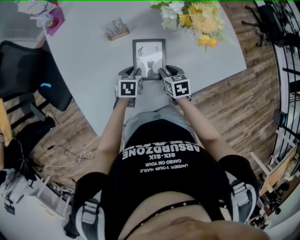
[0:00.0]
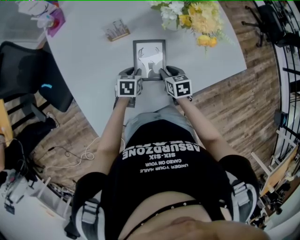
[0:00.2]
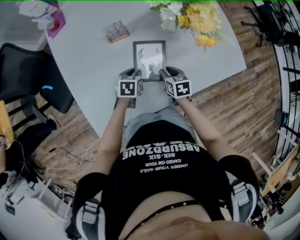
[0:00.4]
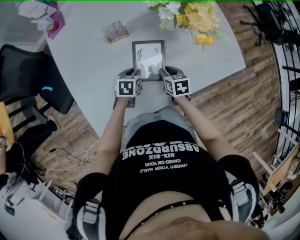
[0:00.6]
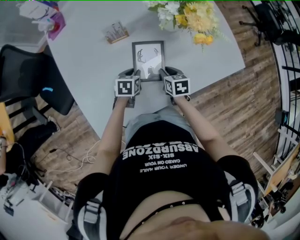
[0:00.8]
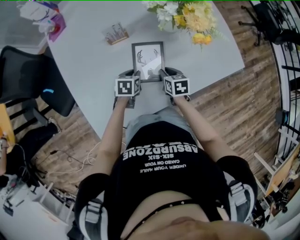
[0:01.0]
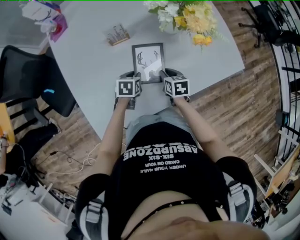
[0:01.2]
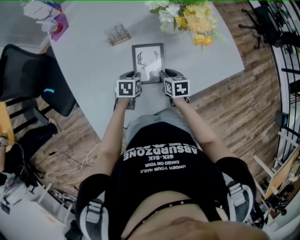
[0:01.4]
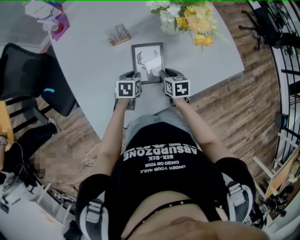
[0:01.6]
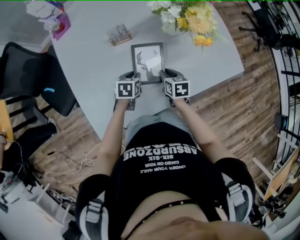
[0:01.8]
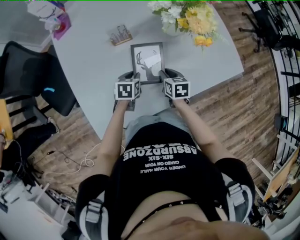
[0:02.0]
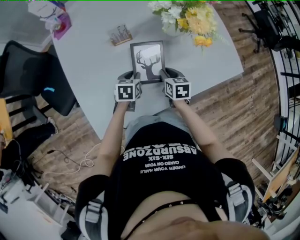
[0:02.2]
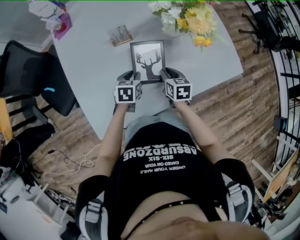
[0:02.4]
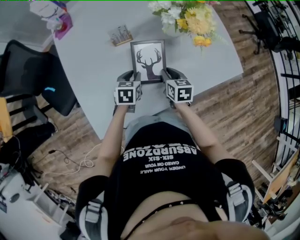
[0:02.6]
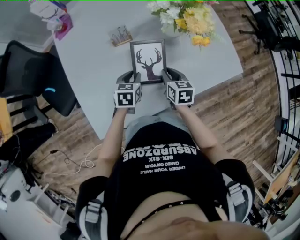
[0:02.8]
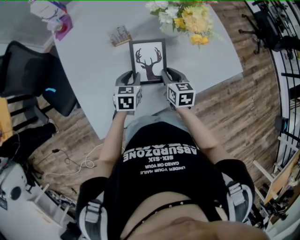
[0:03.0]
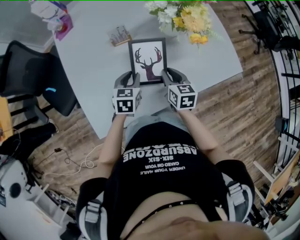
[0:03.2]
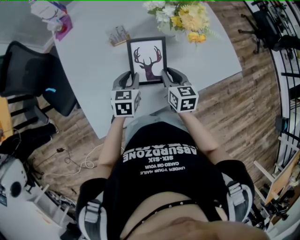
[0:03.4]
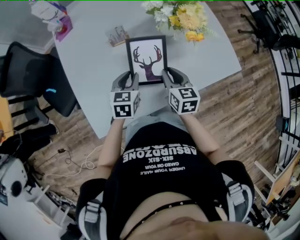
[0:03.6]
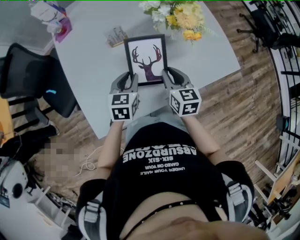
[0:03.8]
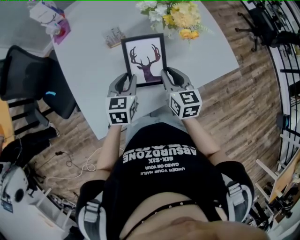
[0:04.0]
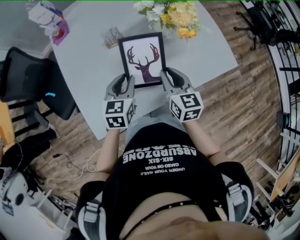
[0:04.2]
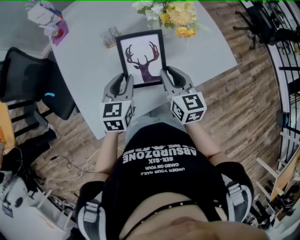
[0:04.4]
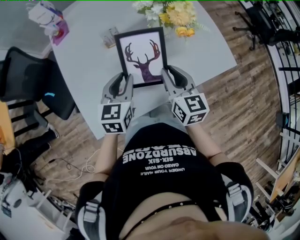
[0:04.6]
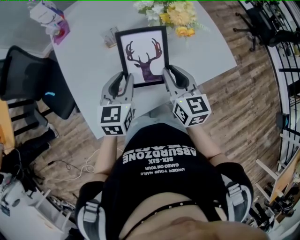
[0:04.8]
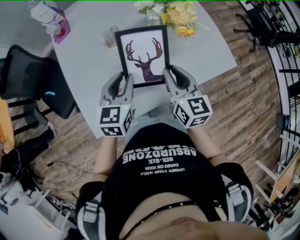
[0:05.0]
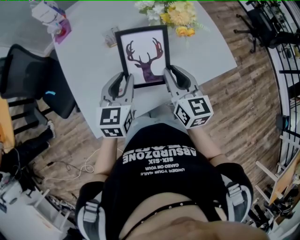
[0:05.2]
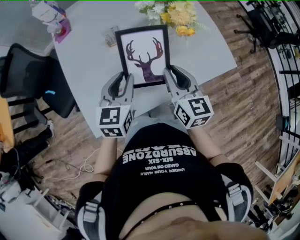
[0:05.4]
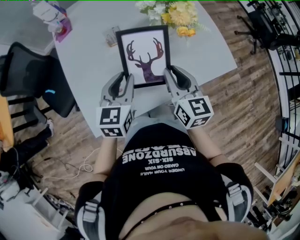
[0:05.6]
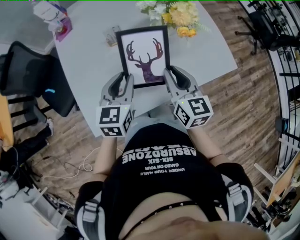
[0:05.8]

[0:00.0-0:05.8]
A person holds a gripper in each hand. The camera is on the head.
0:00.0 to 0:01.4: The grippers move only a little.
0:01.4 to 0:02.8: The grippers both shift upward by roughly 5 cm.
0:02.8 to 0:04.4: The grippers both shift upward by some 15 cm. The right gripper turns by some 20 degrees.
0:04.4 to 0:05.8: The grippers move only a little.

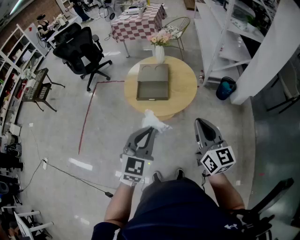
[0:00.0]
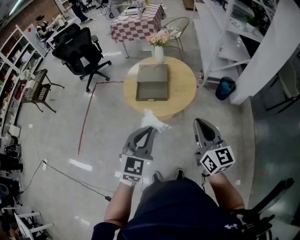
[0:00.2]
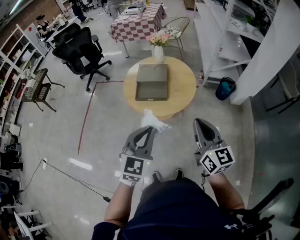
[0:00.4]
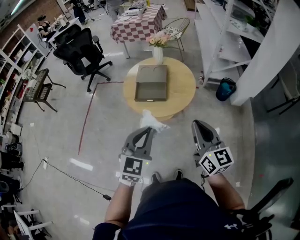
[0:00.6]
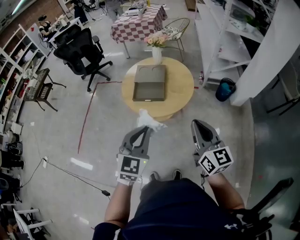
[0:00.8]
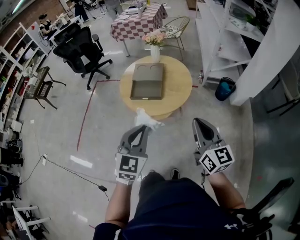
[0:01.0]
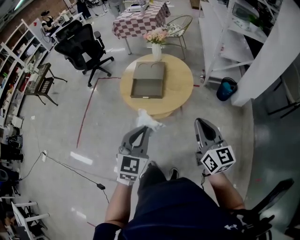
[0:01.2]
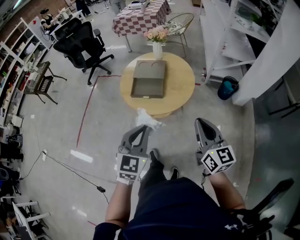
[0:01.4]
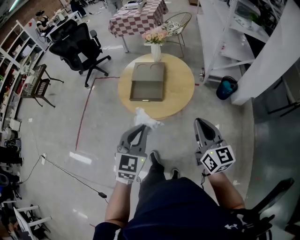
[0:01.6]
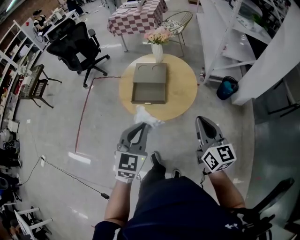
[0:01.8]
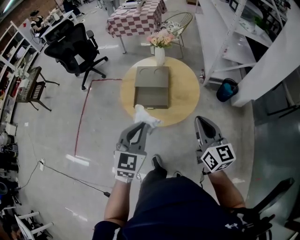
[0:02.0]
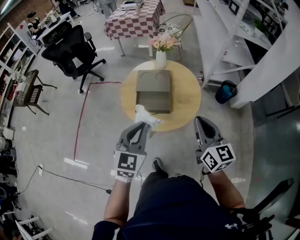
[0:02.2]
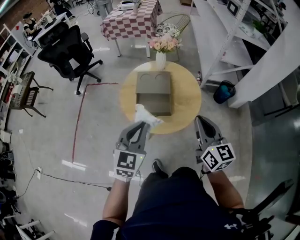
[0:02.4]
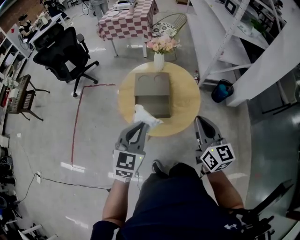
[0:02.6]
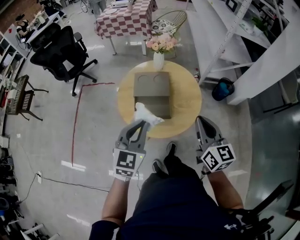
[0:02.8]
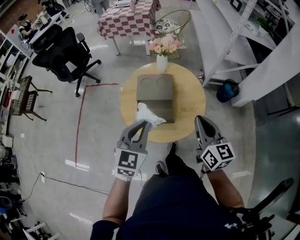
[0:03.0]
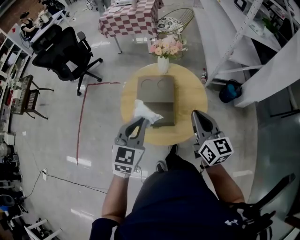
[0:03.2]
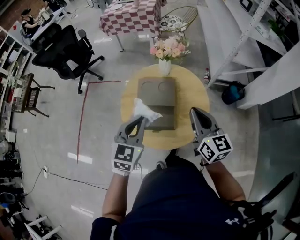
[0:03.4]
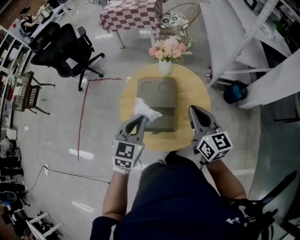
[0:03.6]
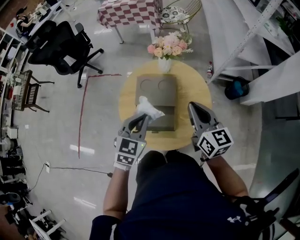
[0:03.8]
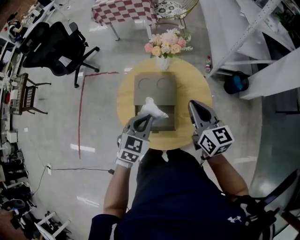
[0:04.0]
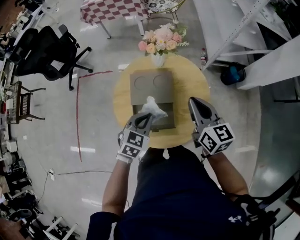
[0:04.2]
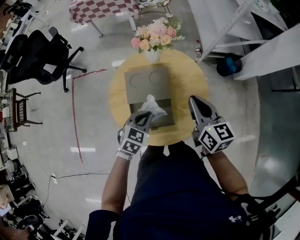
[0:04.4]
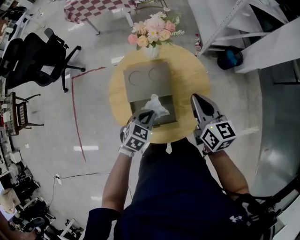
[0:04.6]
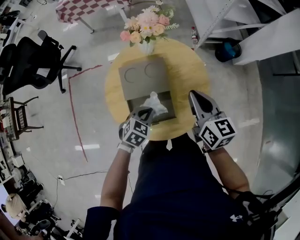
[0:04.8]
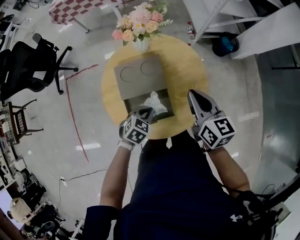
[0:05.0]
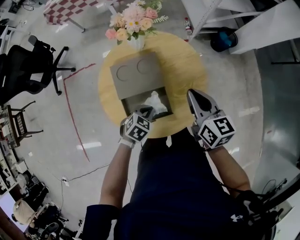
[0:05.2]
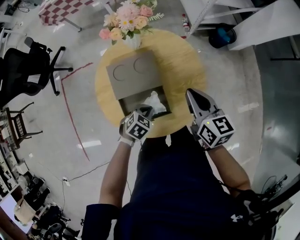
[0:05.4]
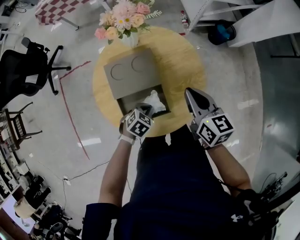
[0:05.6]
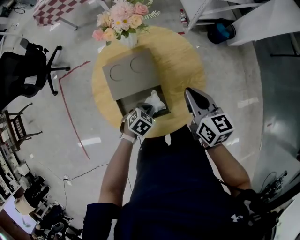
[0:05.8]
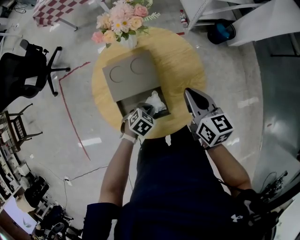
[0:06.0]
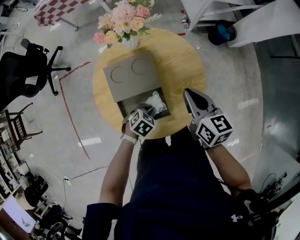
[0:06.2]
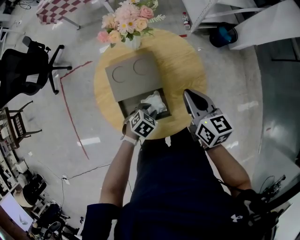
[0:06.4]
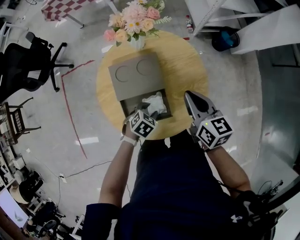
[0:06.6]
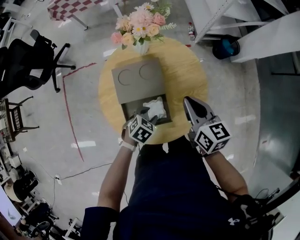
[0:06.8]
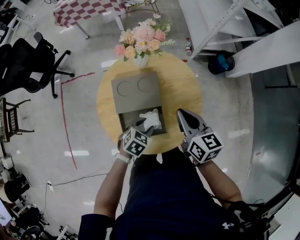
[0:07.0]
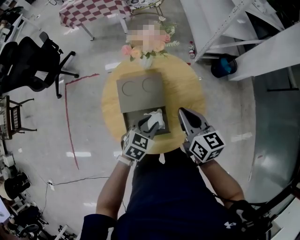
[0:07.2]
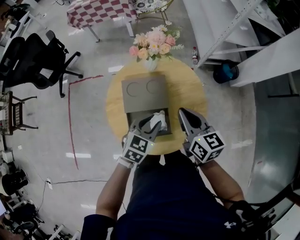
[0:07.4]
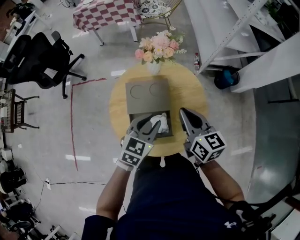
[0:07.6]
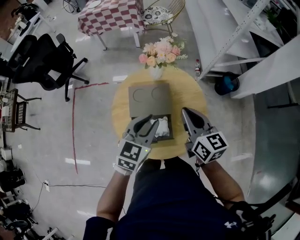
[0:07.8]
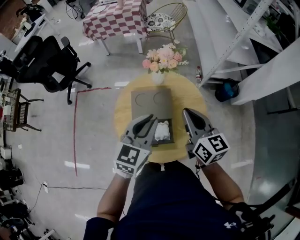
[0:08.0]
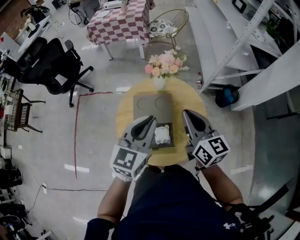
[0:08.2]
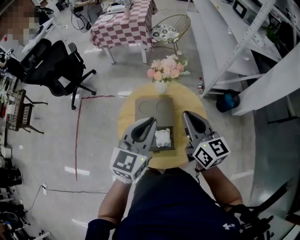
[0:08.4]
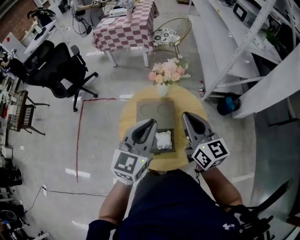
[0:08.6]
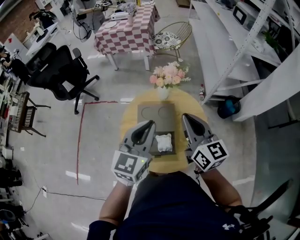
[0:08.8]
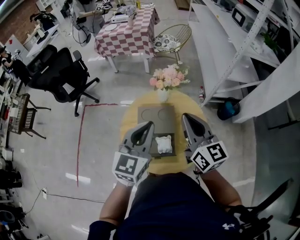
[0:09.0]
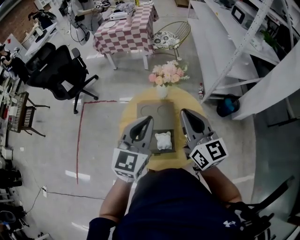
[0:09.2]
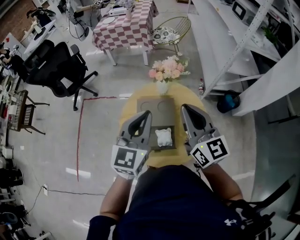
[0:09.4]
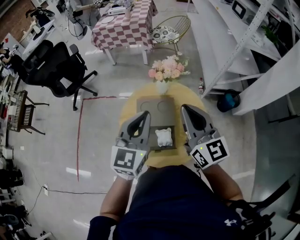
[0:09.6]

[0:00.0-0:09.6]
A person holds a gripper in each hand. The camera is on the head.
0:00.0 to 0:01.6: The left gripper is displaced forward by some 5 cm. Meanwhile the right gripper shifts some 10 cm to the right and forward.
0:01.6 to 0:03.2: The two grippers go about 25 cm forward and to the left.
0:03.2 to 0:04.8: The right gripper is displaced forward and downward by about 15 cm. The left gripper heads downward and forward, covering approximately 25 cm, and tips its fingers downward by roughly 30 degrees.
0:04.8 to 0:06.4: The left gripper travels downward by approximately 10 cm, and opens. The right gripper moves some 5 cm.
0:06.4 to 0:08.0: The right gripper heads upward and to the left, covering some 15 cm; the left gripper is displaced upward by approximately 30 cm, and points its fingers some 50 degrees further upward.
0:08.0 to 0:09.6: The two grippers go some 10 cm upward. The right gripper swivels approximately 20 degrees.

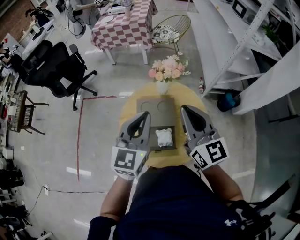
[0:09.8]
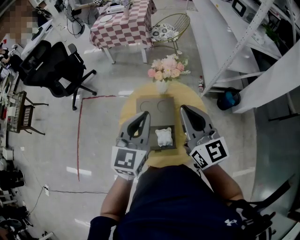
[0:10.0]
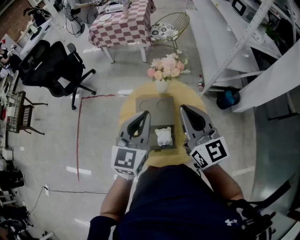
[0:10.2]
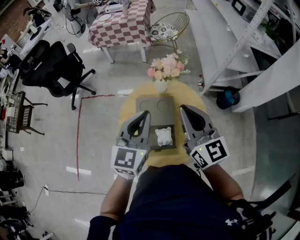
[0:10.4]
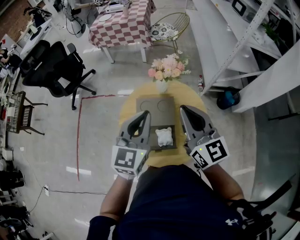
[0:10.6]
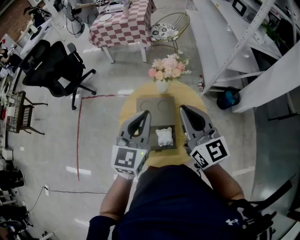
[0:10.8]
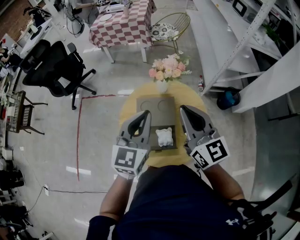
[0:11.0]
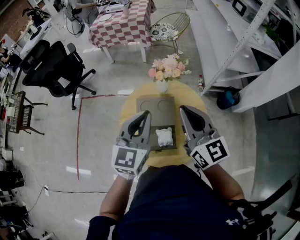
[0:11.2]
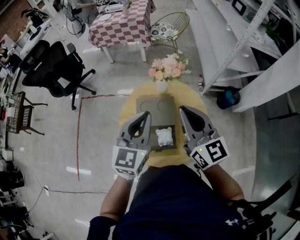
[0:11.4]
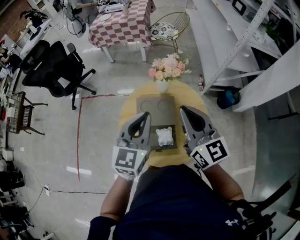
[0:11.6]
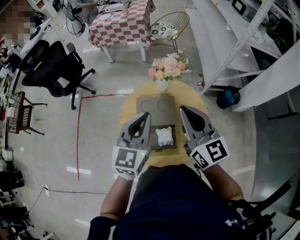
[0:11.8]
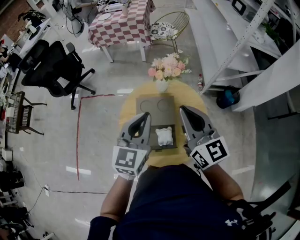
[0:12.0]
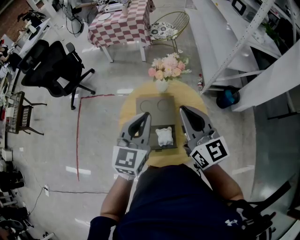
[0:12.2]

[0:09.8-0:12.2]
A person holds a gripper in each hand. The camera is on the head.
0:09.8 to 0:11.0: The two grippers keep their place.
0:11.0 to 0:12.2: The grippers stay close to where they were, moving slightly.

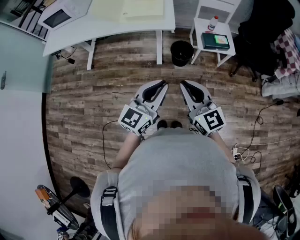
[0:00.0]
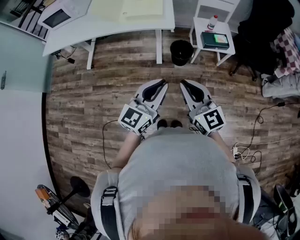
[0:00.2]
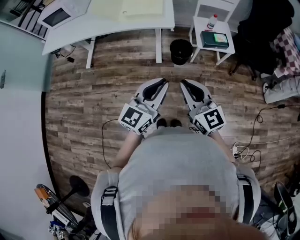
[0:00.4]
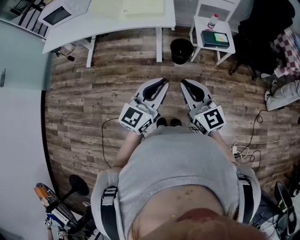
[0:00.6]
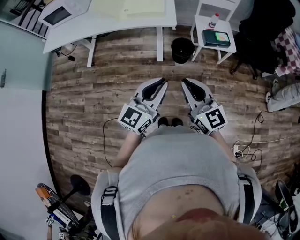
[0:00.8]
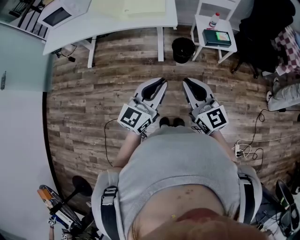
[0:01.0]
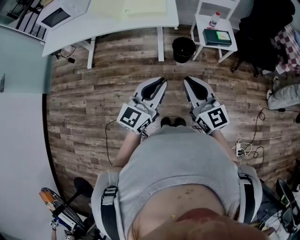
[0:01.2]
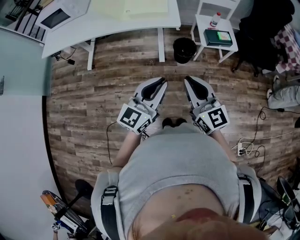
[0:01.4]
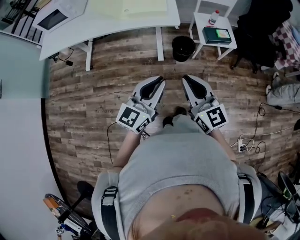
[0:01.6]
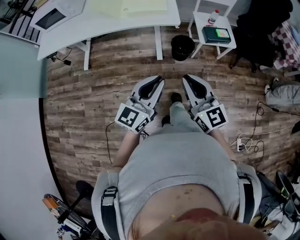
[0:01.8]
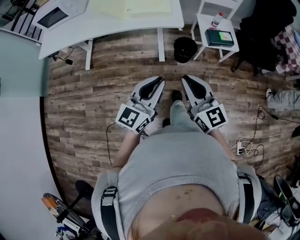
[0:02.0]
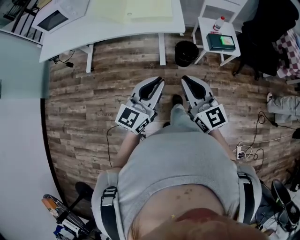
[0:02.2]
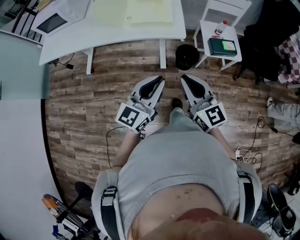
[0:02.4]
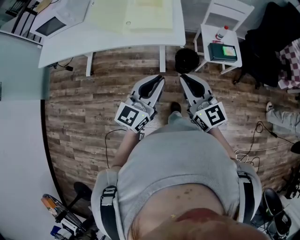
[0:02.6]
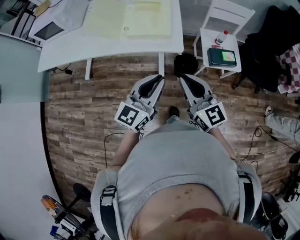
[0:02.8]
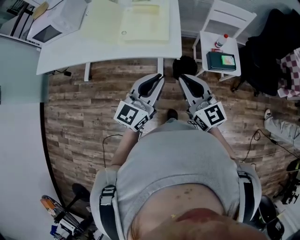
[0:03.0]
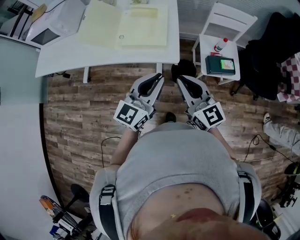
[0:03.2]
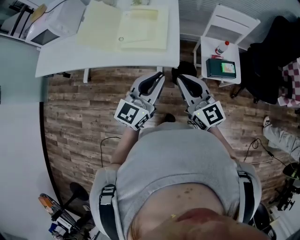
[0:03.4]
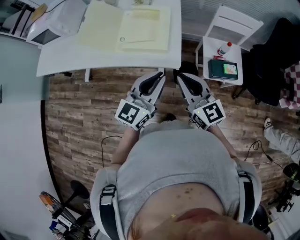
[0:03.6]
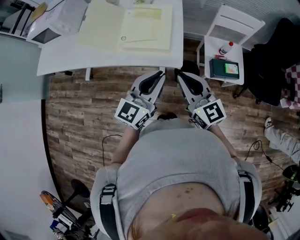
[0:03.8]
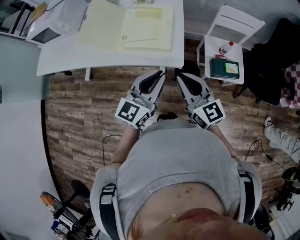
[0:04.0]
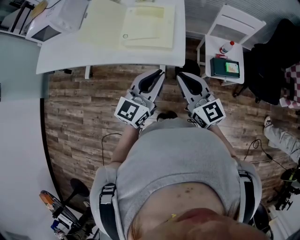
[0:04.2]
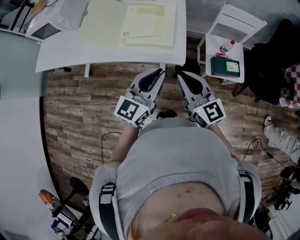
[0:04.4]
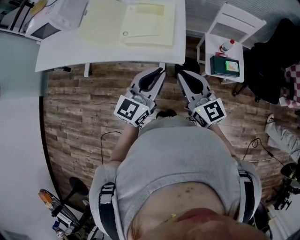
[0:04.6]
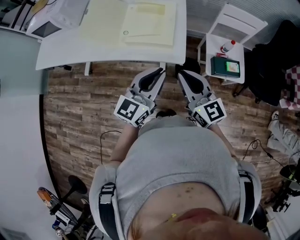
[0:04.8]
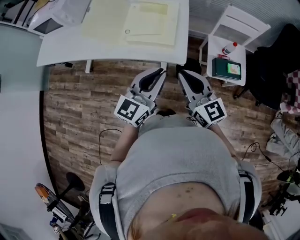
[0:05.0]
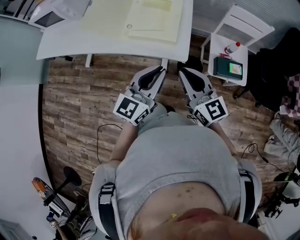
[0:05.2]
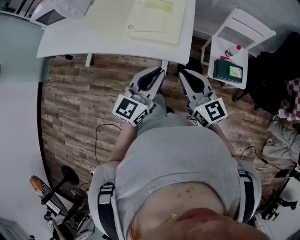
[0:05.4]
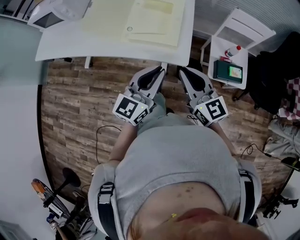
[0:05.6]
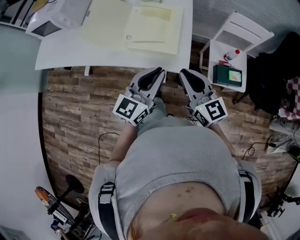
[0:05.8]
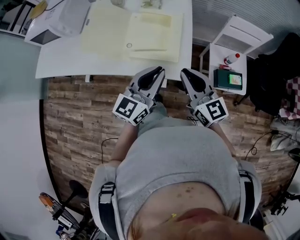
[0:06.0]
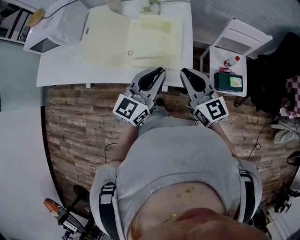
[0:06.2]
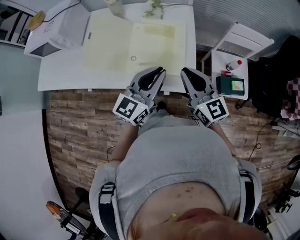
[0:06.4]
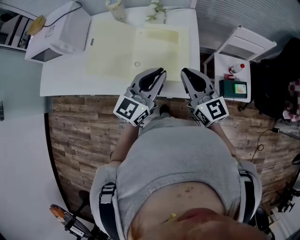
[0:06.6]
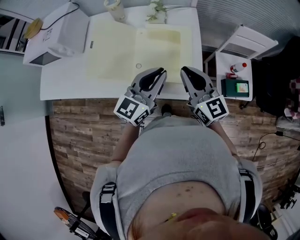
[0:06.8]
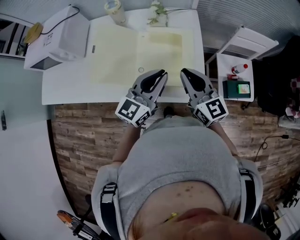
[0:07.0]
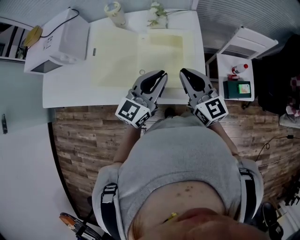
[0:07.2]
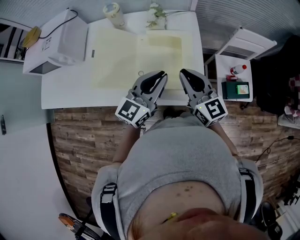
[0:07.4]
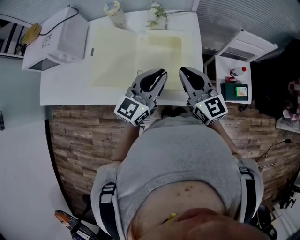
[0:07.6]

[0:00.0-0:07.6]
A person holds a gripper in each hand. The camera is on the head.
0:00.0 to 0:01.6: Both grippers travel together to the left, approximately 5 cm.
0:01.6 to 0:03.0: The grippers both shift forward by about 25 cm.
0:03.0 to 0:04.6: Both grippers move forward, roughly 5 cm.
0:04.6 to 0:06.0: The grippers both shift forward by roughly 10 cm.
0:06.0 to 0:07.6: Both grippers travel together forward and to the left, approximately 15 cm.
